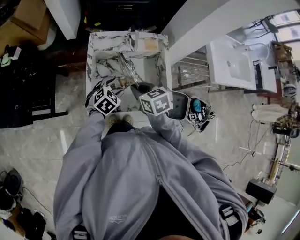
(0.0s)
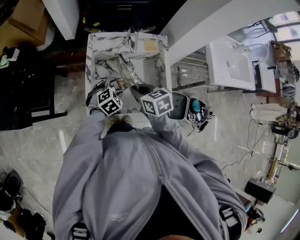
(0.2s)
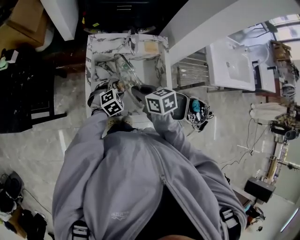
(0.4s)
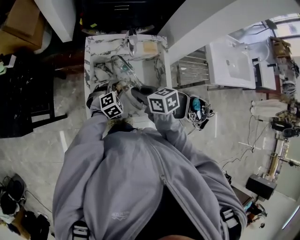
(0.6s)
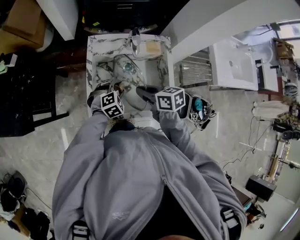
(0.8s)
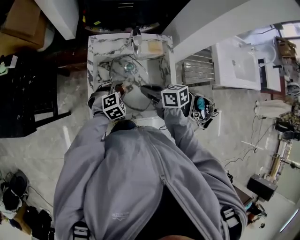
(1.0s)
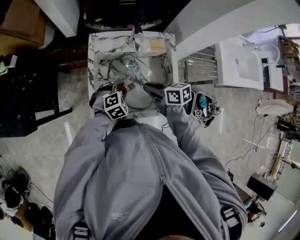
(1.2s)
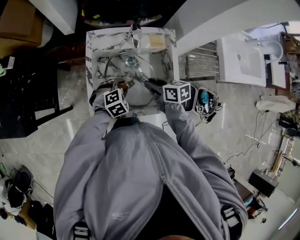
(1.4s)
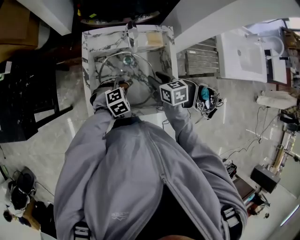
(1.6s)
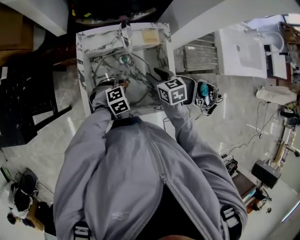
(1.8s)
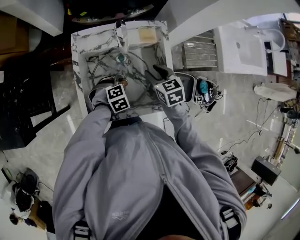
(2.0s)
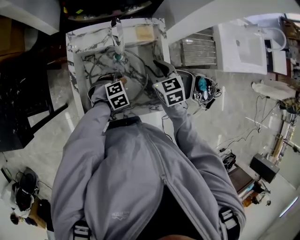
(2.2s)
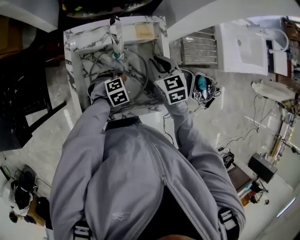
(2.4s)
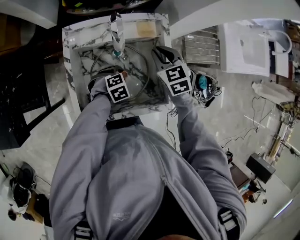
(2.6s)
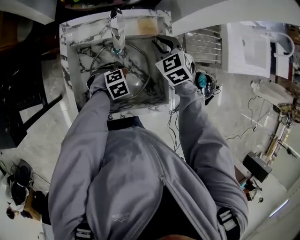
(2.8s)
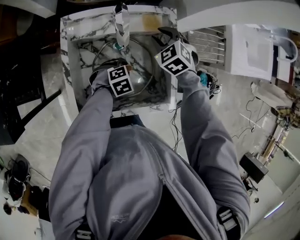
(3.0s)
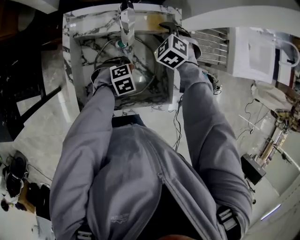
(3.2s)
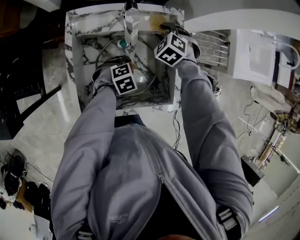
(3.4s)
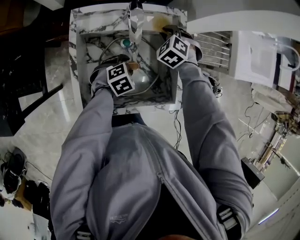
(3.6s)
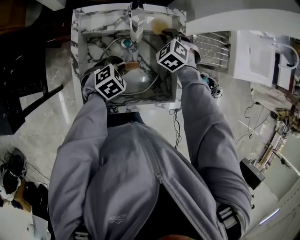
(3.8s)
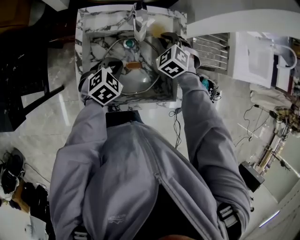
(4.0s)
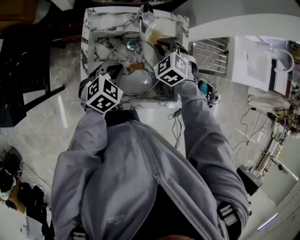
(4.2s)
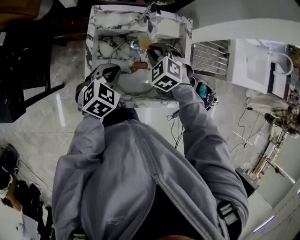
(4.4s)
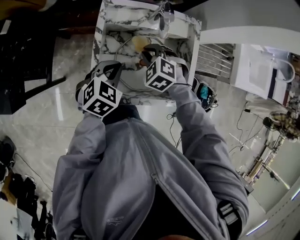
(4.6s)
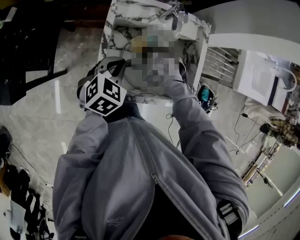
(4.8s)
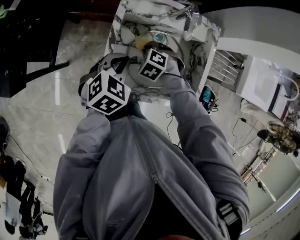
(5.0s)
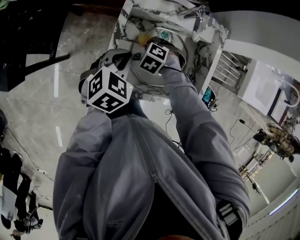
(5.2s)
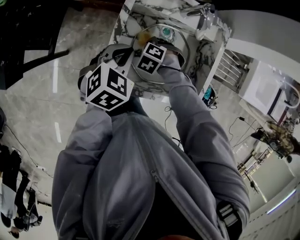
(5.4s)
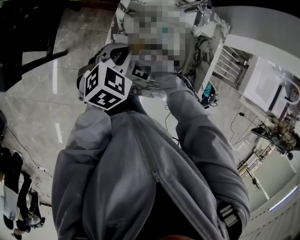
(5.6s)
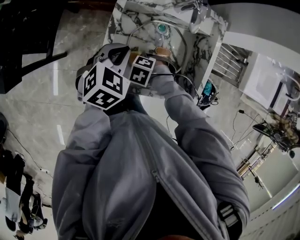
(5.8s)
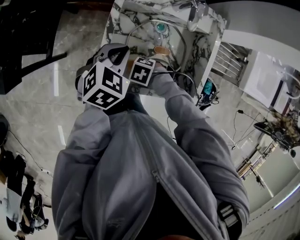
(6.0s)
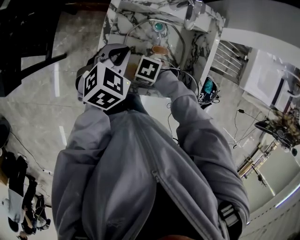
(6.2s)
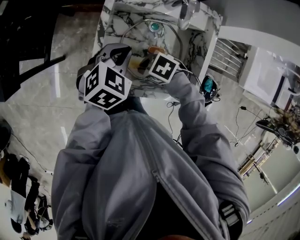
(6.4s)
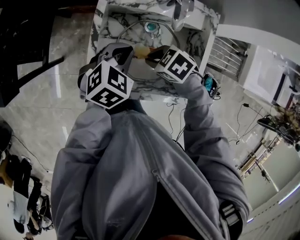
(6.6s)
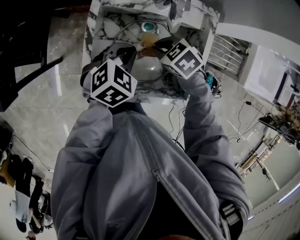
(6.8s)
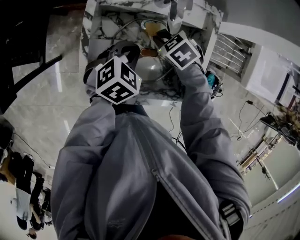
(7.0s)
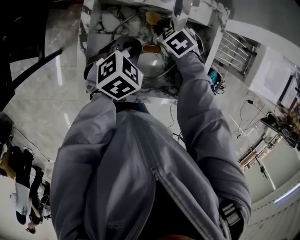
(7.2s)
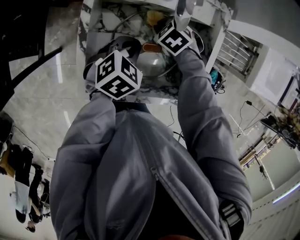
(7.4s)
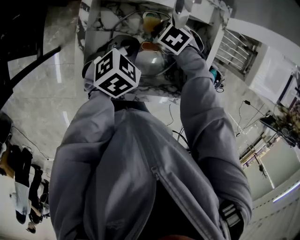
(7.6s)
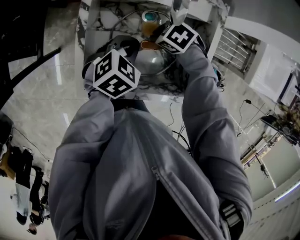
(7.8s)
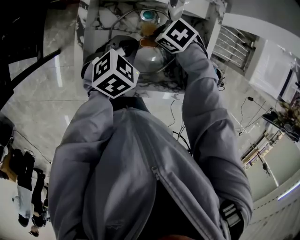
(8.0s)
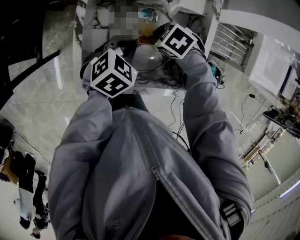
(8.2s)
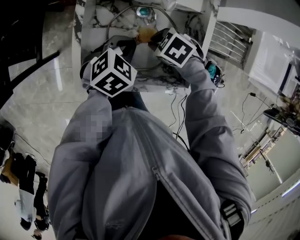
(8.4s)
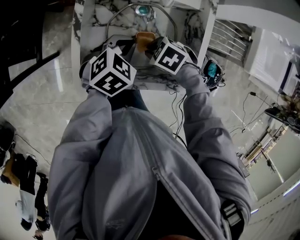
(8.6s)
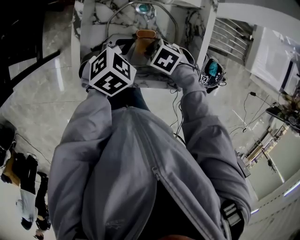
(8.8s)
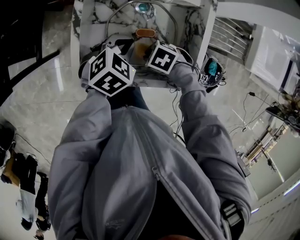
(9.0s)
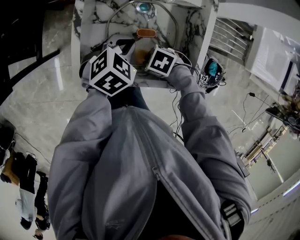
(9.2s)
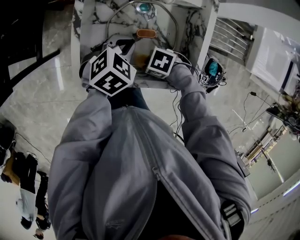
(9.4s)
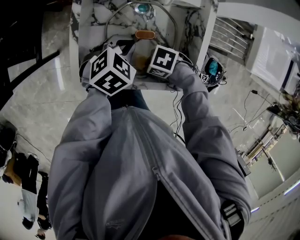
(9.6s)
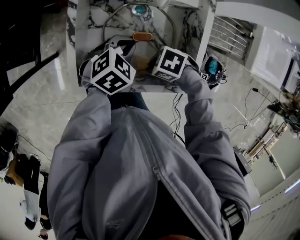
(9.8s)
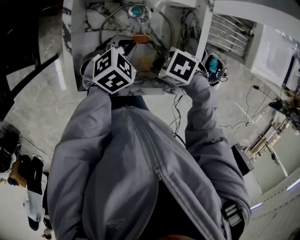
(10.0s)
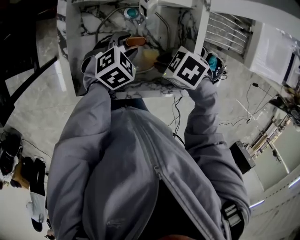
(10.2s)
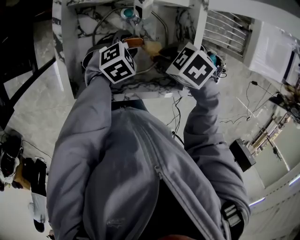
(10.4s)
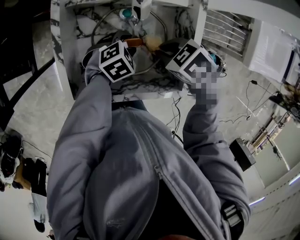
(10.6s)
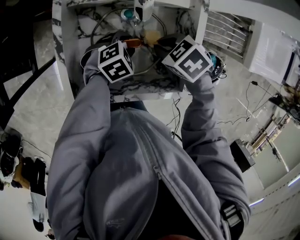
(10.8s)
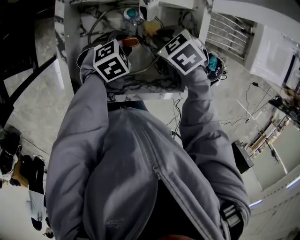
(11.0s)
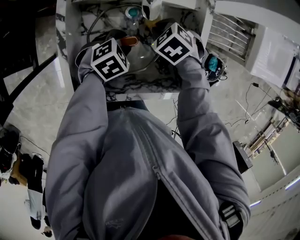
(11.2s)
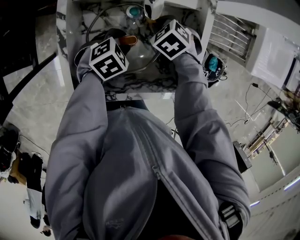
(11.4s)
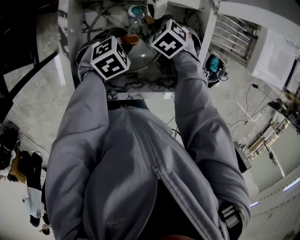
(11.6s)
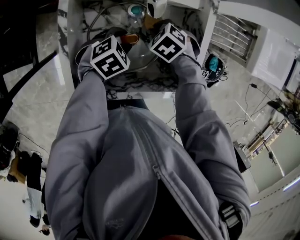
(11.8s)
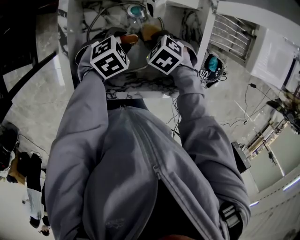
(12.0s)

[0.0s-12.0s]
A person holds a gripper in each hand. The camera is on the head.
0.0s to 1.6s: The right gripper is displaced to the right, forward and downward by approximately 15 cm, and opens; the left gripper is displaced downward by approximately 5 cm, and rotates about 30 degrees.
1.6s to 3.0s: The right gripper goes roughly 15 cm forward, and twists some 50 degrees counterclockwise, seen from behind. The left gripper heads downward, forward and to the right, covering about 10 cm.
3.0s to 4.4s: The left gripper goes approximately 15 cm upward, turns by some 40 degrees, and closes its fingers, while the right gripper moves some 15 cm.
4.4s to 6.0s: The left gripper changes place by about 5 cm. Meanwhile the right gripper changes place by some 30 cm, and swivels about 50 degrees.
6.0s to 7.6s: The left gripper changes place by some 15 cm. Meanwhile the right gripper travels upward and back again, roughly 10 cm each way.
7.6s to 9.0s: The right gripper shifts by about 15 cm. Meanwhile the left gripper ends up some 5 cm from where it was.
9.0s to 10.4s: The left gripper travels downward by roughly 10 cm, and opens its fingers; the right gripper moves about 15 cm.
10.4s to 12.0s: The right gripper goes roughly 10 cm downward.

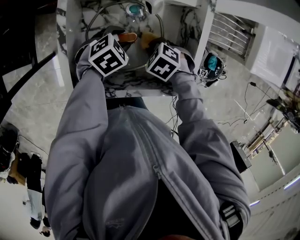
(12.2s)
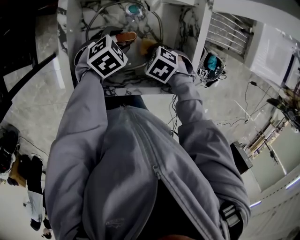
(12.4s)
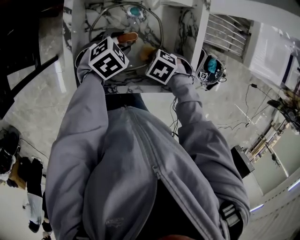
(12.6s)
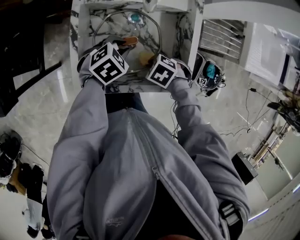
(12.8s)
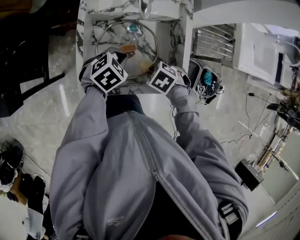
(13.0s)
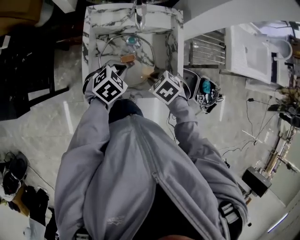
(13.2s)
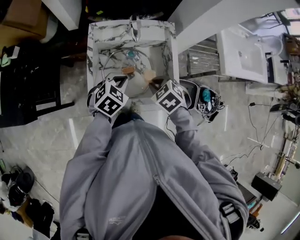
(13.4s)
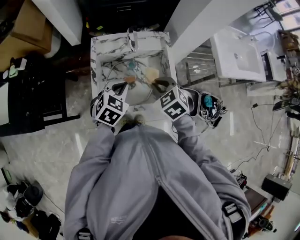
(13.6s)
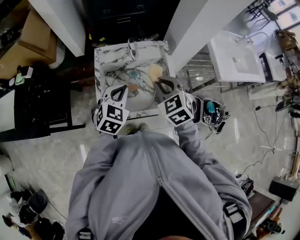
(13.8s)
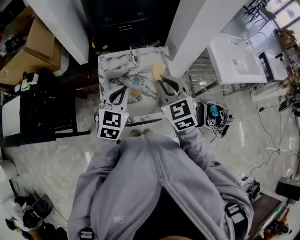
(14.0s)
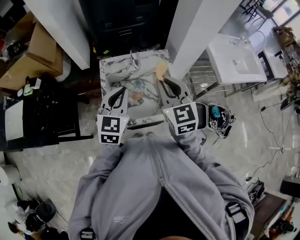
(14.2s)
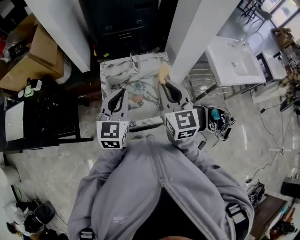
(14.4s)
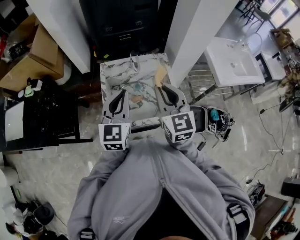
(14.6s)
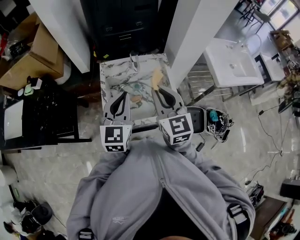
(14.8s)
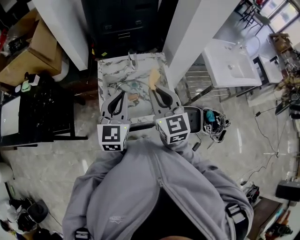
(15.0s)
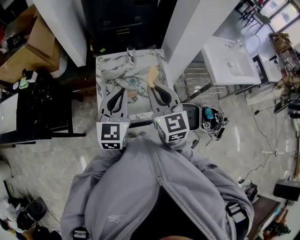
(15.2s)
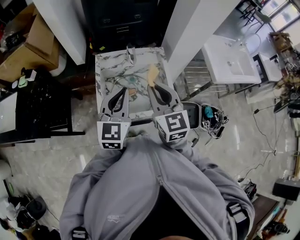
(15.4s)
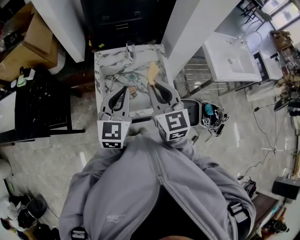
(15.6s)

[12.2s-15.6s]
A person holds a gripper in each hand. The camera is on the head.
12.2s to 13.8s: Both grippers travel together upward, approximately 35 cm. The right gripper angles its fingers upward, by roughly 40 degrees. Meanwhile the left gripper changes its angle by approximately 40 degrees, and closes.
13.8s to 15.6s: The right gripper goes roughly 10 cm upward and backward, and swivels about 40 degrees. The left gripper is displaced upward by roughly 10 cm, and changes its angle by some 30 degrees.

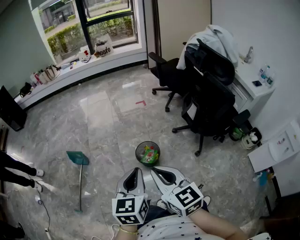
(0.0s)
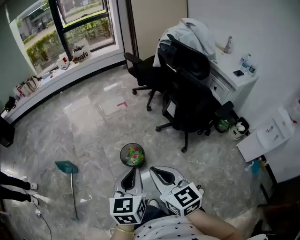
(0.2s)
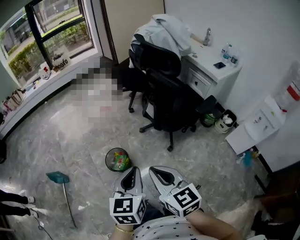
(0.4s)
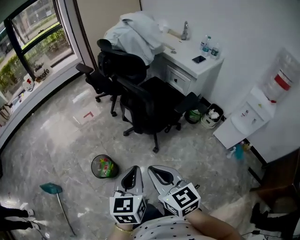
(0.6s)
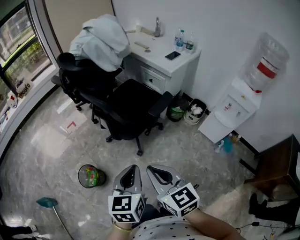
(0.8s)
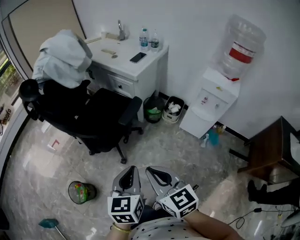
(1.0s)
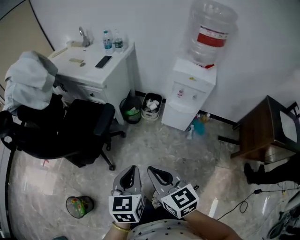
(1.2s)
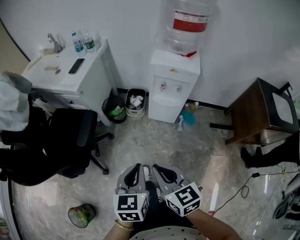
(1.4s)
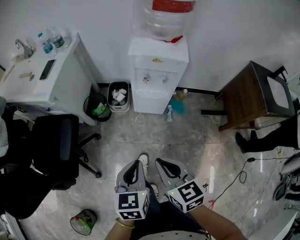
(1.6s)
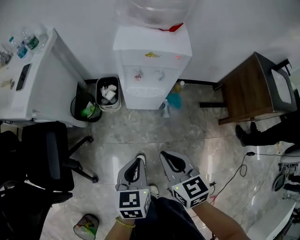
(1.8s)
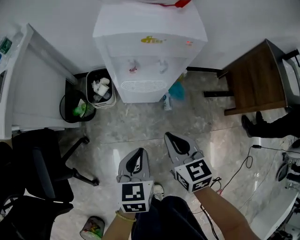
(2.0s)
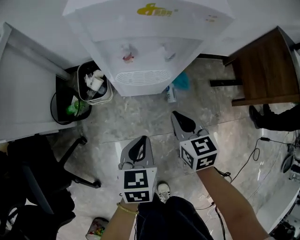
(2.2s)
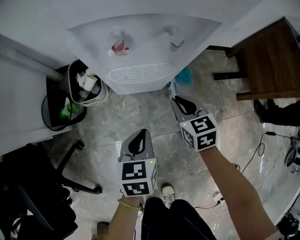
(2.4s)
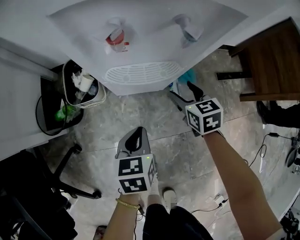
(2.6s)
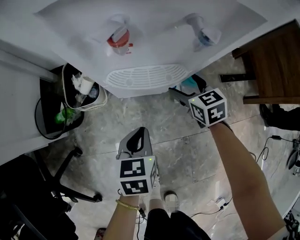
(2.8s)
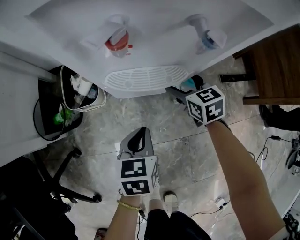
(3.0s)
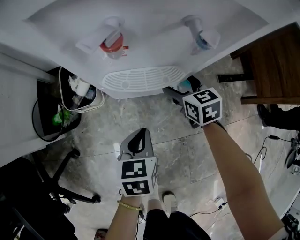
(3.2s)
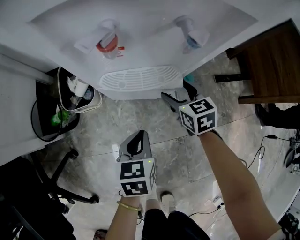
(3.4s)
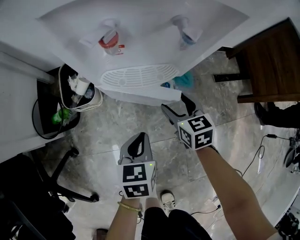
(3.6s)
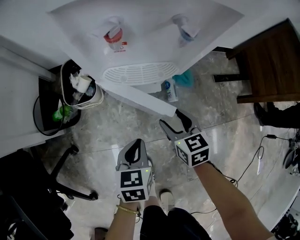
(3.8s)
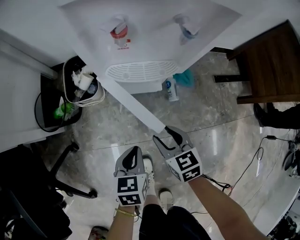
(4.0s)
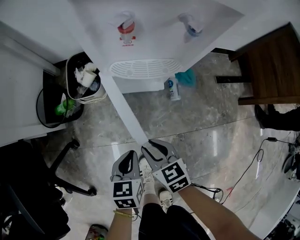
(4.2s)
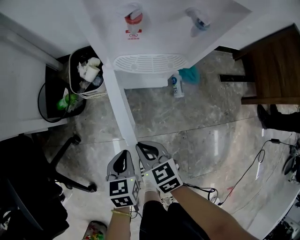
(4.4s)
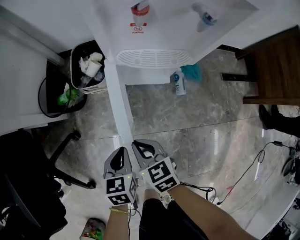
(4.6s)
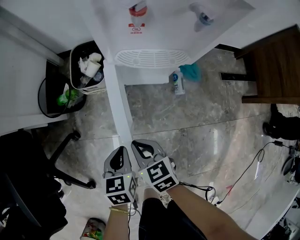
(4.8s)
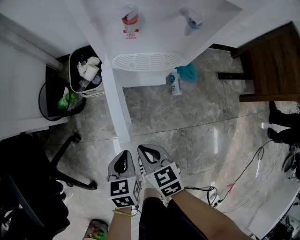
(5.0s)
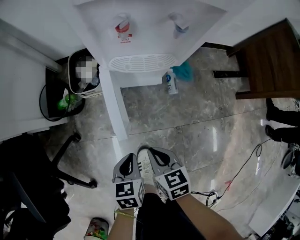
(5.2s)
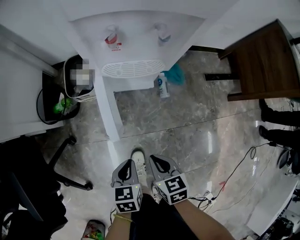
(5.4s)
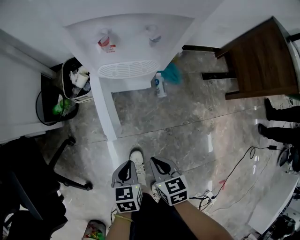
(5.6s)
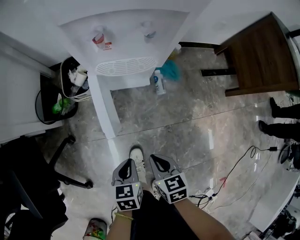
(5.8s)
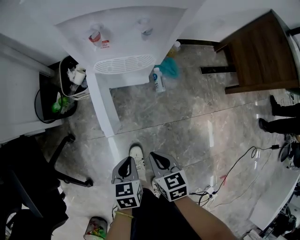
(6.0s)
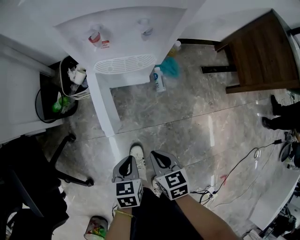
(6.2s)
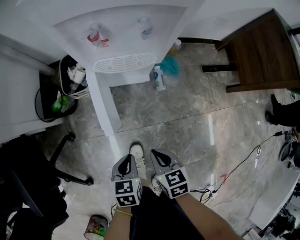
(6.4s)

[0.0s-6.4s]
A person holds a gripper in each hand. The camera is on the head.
0.0s to 1.6s: The two grippers travel together, approximately 90 cm. The right gripper swivels about 70 degrees. The left gripper changes its angle by approximately 70 degrees.
1.6s to 3.2s: Both grippers travel together downward and forward, some 60 cm. The right gripper opens up. The left gripper turns by roughly 20 degrees.
3.2s to 4.8s: The right gripper heads backward and to the left, covering about 35 cm, and closes its fingers. Meanwhile the left gripper heads backward and to the left, covering roughly 15 cm.
4.8s to 6.4s: The right gripper moves to the right, backward and upward, approximately 15 cm, while the left gripper moves to the right and backward, some 10 cm.

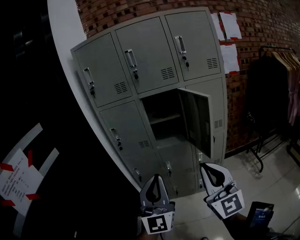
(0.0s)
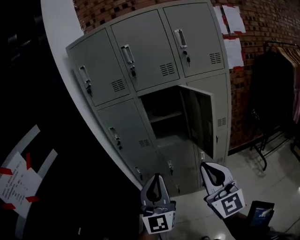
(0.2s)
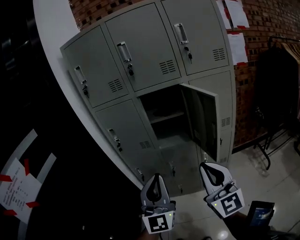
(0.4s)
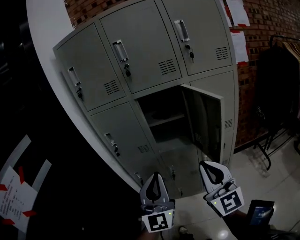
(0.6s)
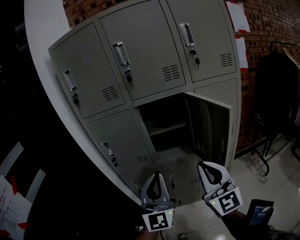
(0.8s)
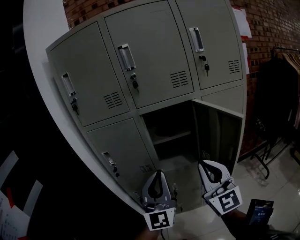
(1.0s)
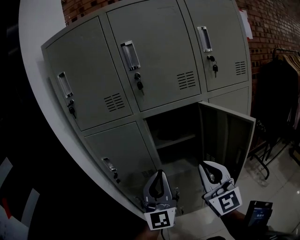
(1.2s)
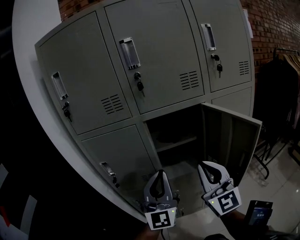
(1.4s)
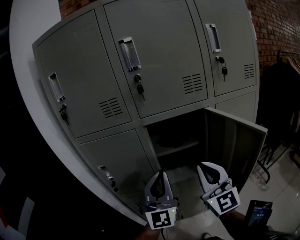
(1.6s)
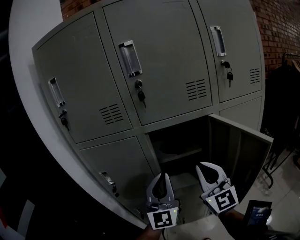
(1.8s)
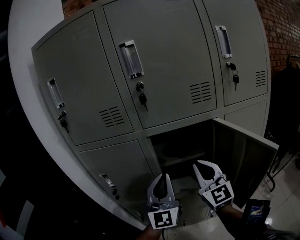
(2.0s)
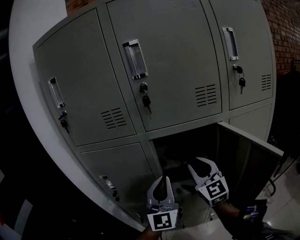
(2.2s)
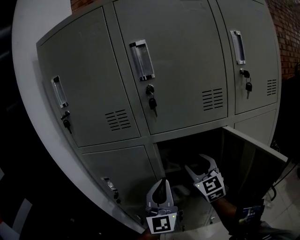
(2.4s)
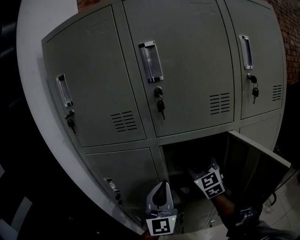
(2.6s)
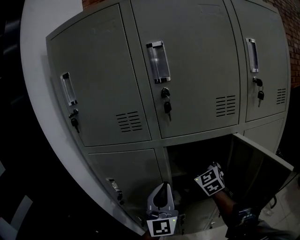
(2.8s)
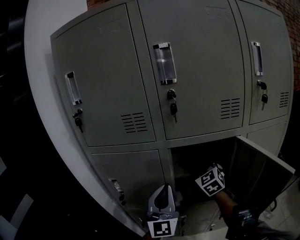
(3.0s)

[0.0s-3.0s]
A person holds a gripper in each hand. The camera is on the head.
0.0s to 1.6s: The two grippers go some 35 cm forward.
1.6s to 3.0s: The left gripper is displaced forward by some 10 cm, while the right gripper travels forward by about 25 cm, angles its fingers downward, by some 30 degrees, and opens its fingers.
